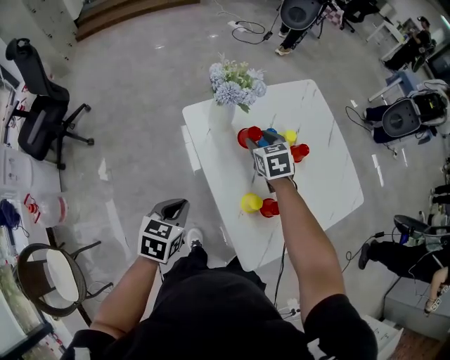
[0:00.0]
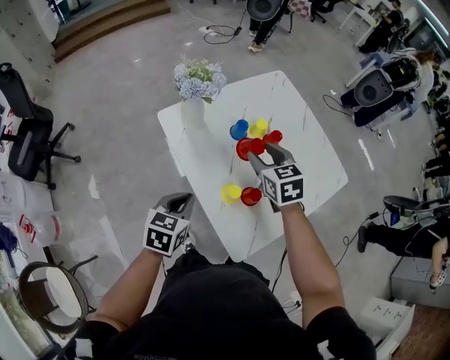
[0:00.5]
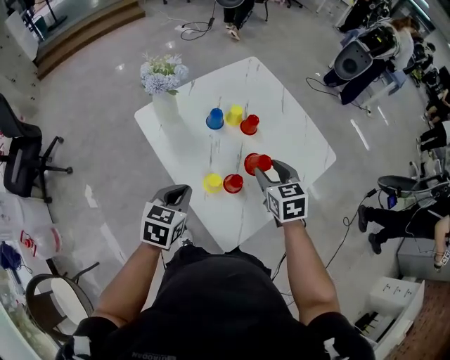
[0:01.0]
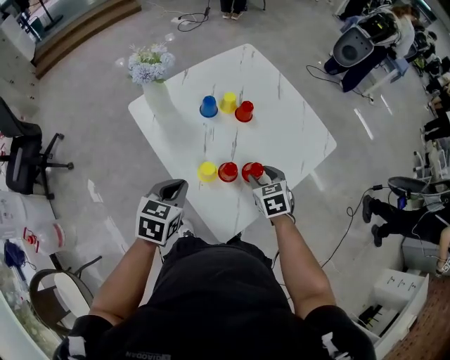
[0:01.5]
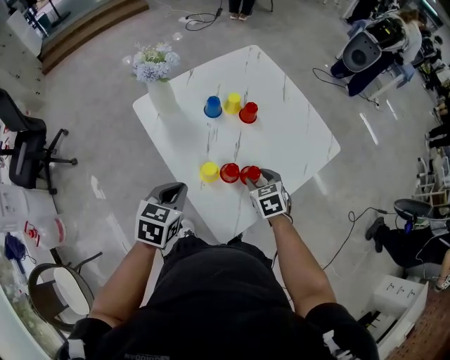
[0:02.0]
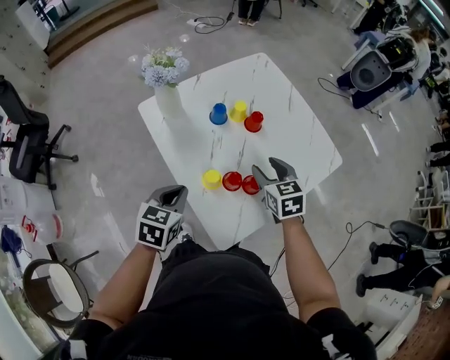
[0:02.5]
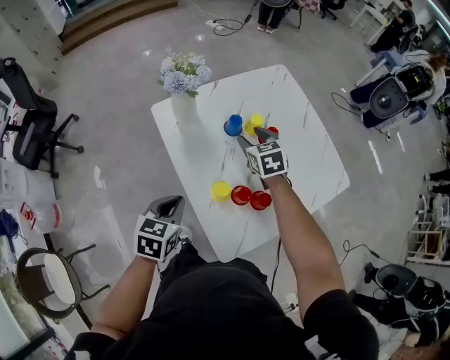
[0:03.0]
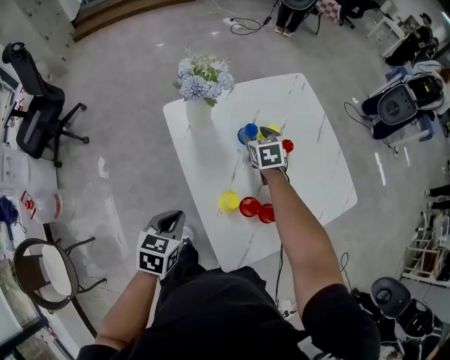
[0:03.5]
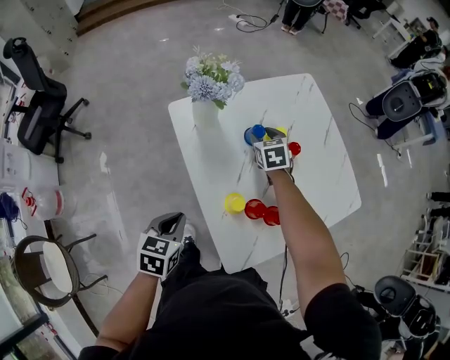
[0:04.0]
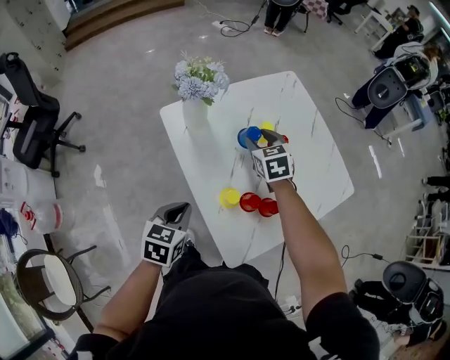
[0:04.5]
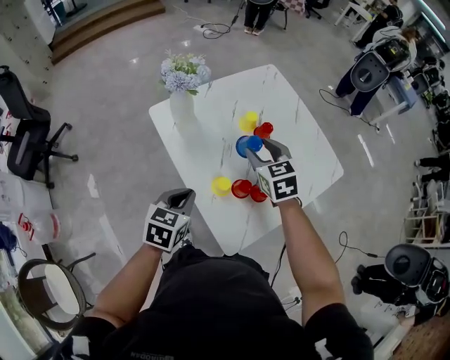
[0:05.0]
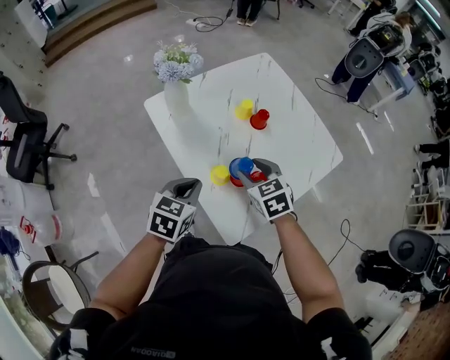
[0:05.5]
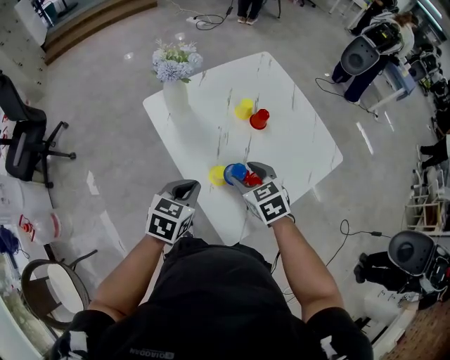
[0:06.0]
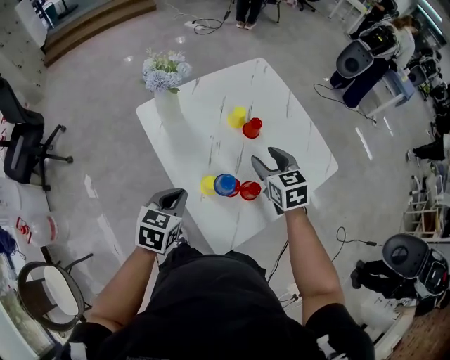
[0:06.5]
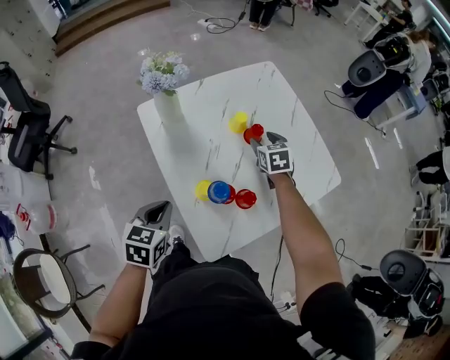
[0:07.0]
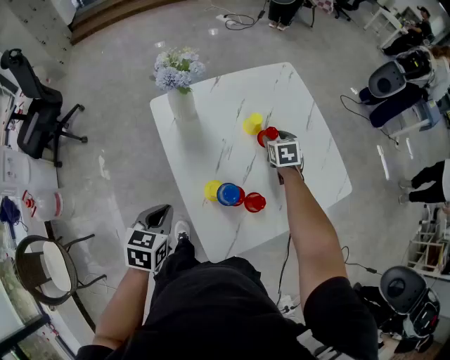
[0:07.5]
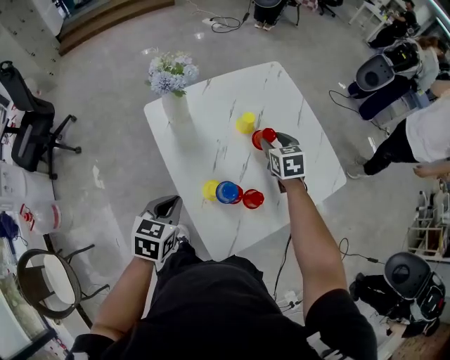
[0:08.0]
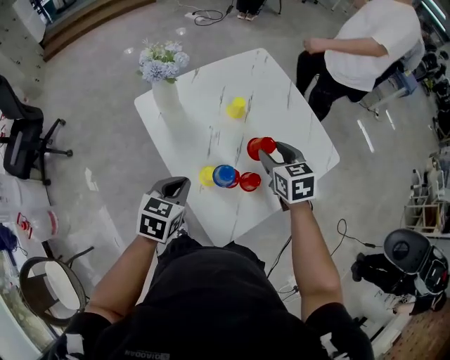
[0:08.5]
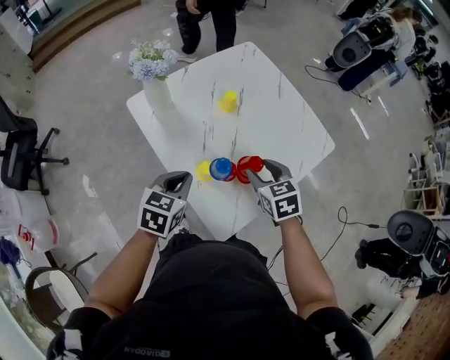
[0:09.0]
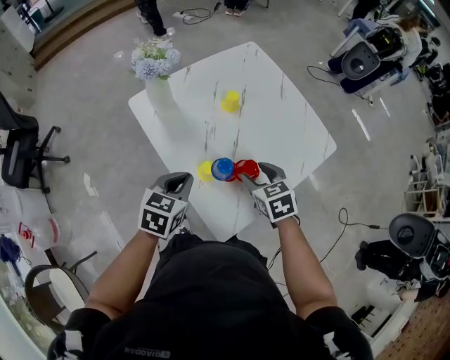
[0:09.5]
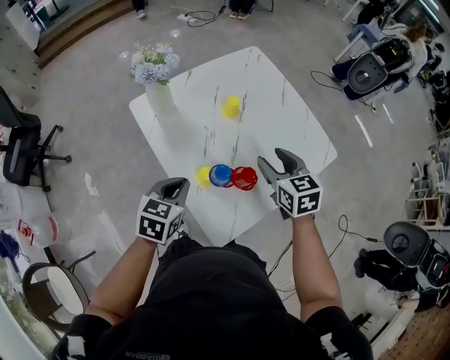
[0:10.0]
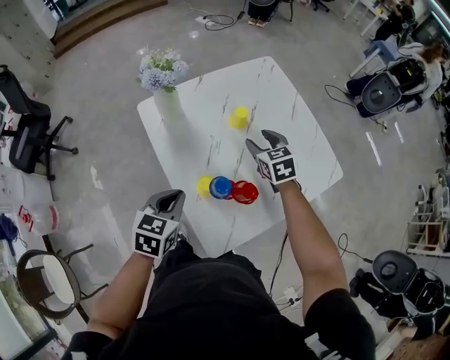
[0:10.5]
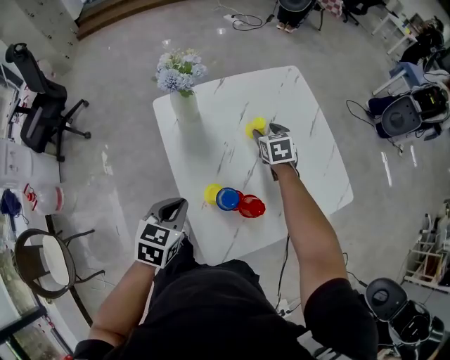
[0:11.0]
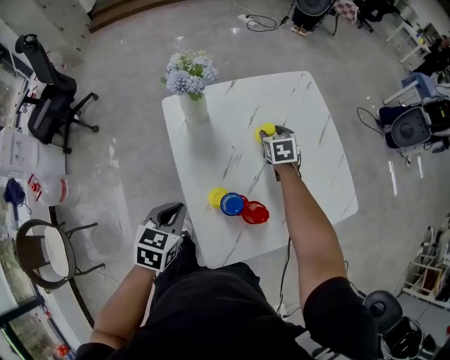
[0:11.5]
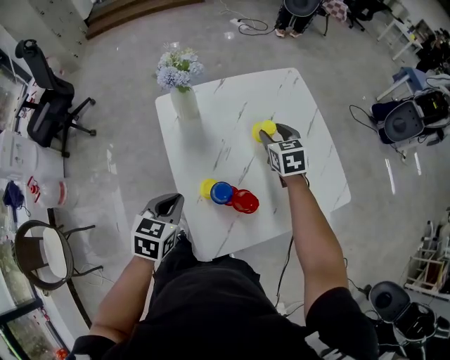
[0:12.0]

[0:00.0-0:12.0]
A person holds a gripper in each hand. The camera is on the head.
0:00.0 to 0:02.0: The left gripper is displaced to the right by some 15 cm. The right gripper moves to the right and backward, some 30 cm.
0:02.0 to 0:04.0: The right gripper is displaced forward and to the left by some 30 cm. The left gripper heads to the left, covering about 10 cm.
0:04.0 to 0:06.0: The right gripper heads backward, covering some 25 cm, while the left gripper is displaced to the right by some 10 cm, and swivels roughly 20 degrees.
0:06.0 to 0:08.0: The right gripper heads forward and to the right, covering roughly 20 cm.
0:08.0 to 0:10.0: The right gripper shifts some 15 cm backward and upward.
0:10.0 to 0:12.0: The right gripper shifts some 20 cm forward.

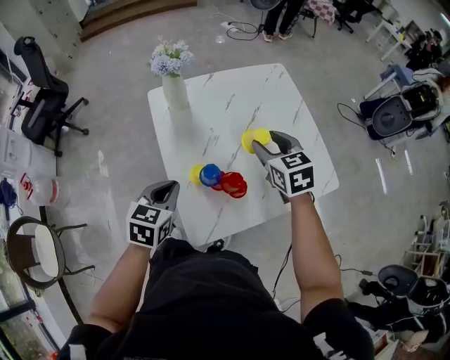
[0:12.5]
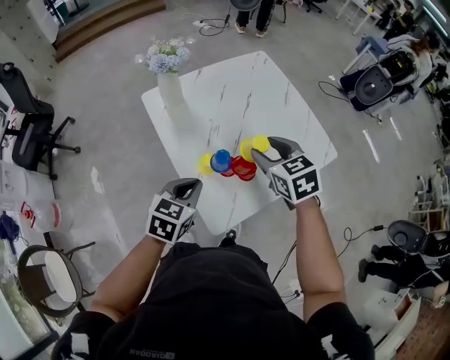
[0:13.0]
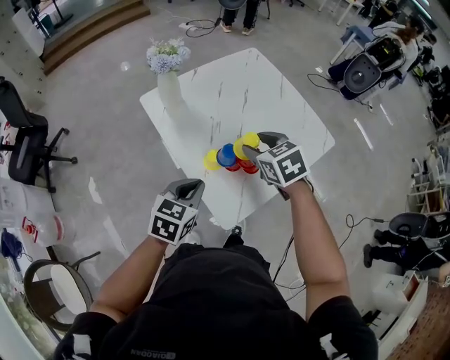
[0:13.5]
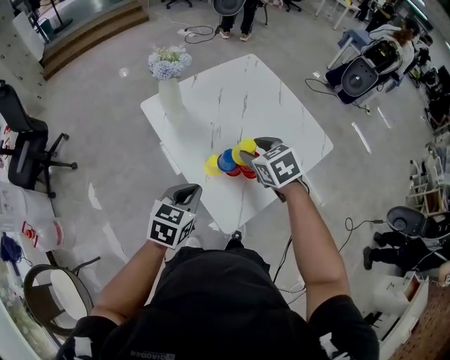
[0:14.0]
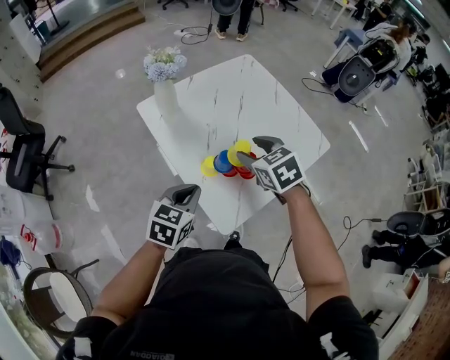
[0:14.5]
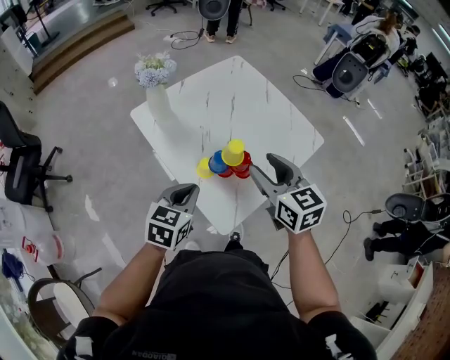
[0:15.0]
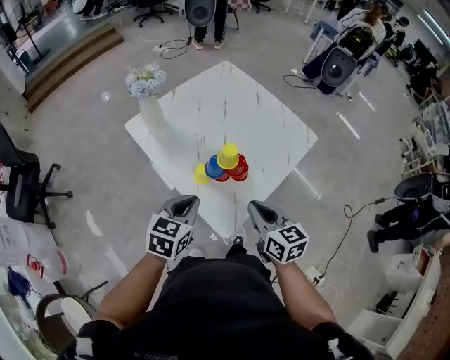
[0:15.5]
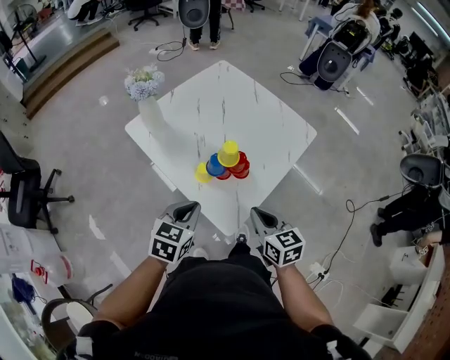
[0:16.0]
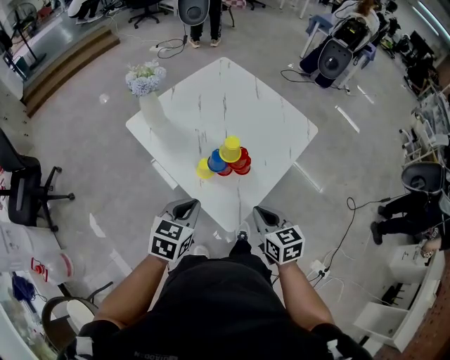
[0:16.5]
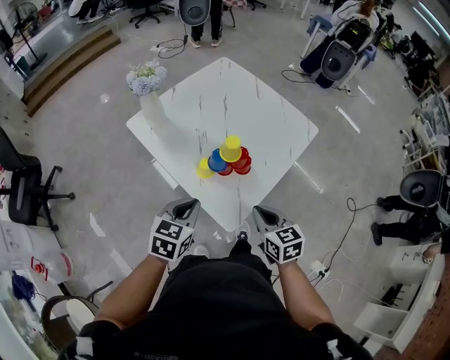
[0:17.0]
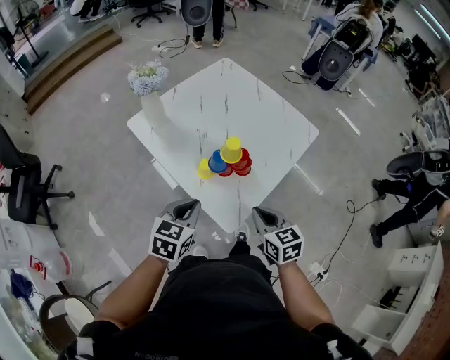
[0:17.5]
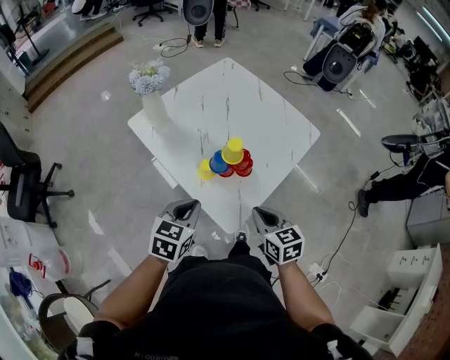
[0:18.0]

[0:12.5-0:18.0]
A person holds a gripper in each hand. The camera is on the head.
0:12.5 to 0:14.5: The left gripper swivels roughly 20 degrees. The right gripper goes approximately 10 cm backward and to the left.
0:14.5 to 0:16.0: The right gripper travels backward by about 15 cm, swivels some 30 degrees, and closes its fingers.
0:16.0 to 0:18.0: The grippers stay close to where they were, moving slightly.

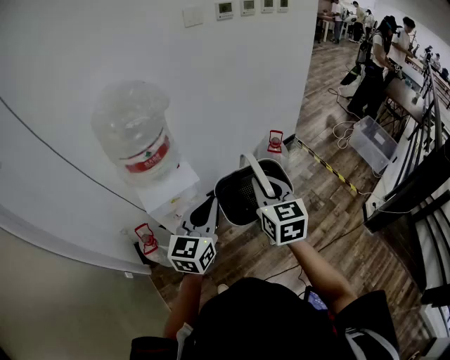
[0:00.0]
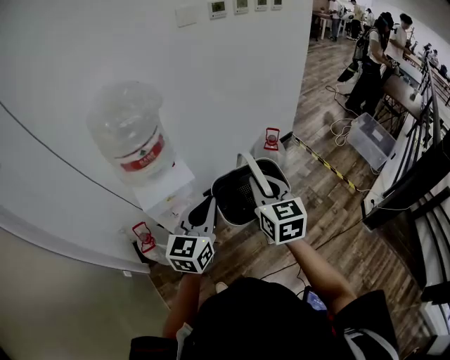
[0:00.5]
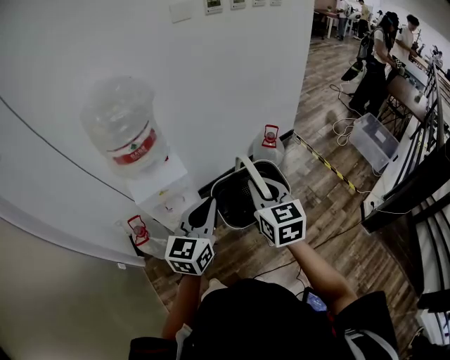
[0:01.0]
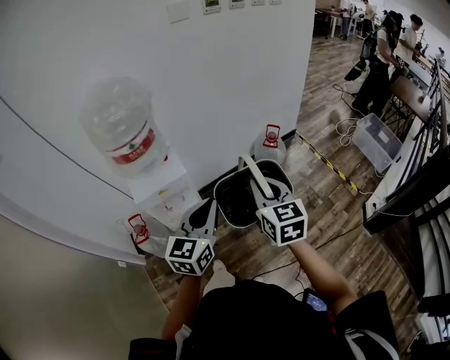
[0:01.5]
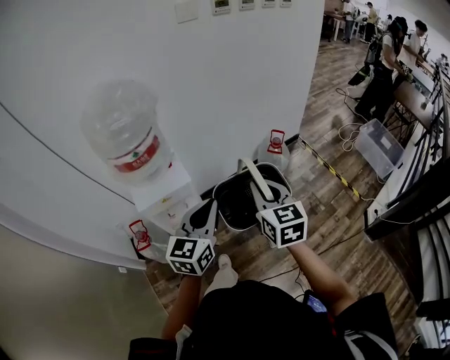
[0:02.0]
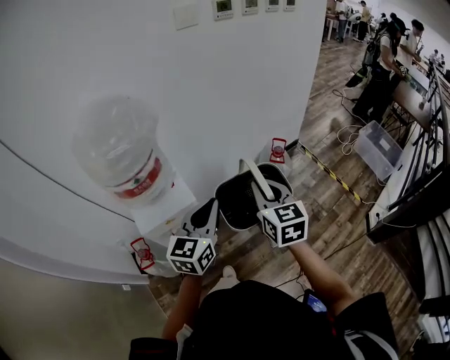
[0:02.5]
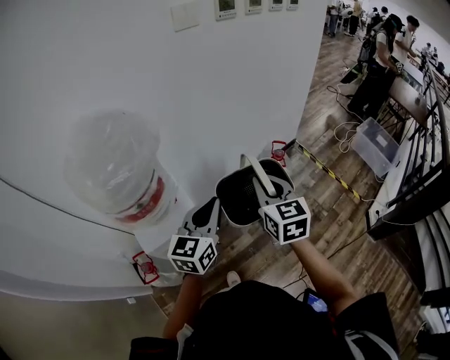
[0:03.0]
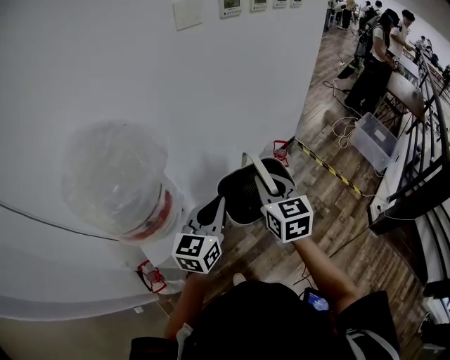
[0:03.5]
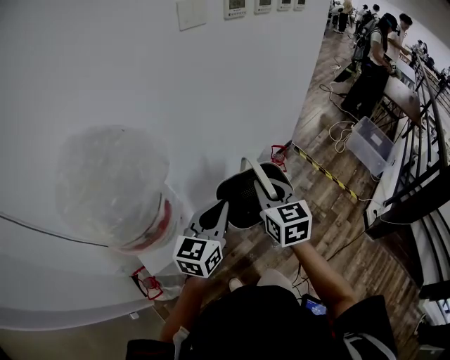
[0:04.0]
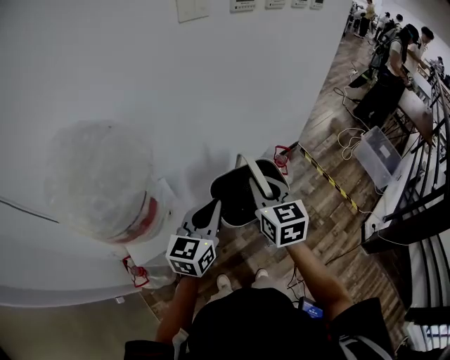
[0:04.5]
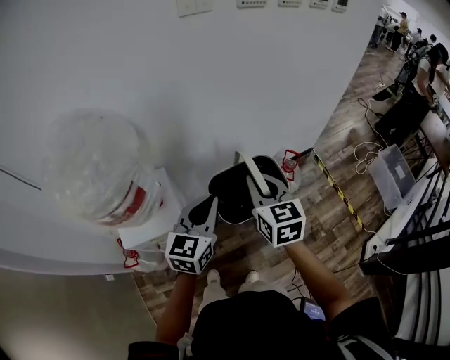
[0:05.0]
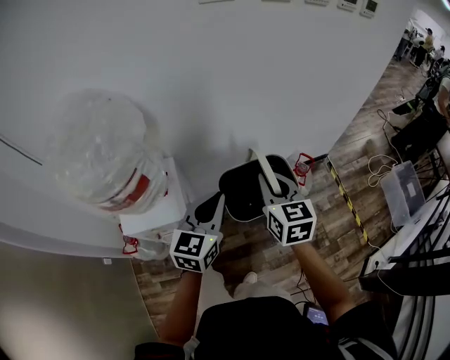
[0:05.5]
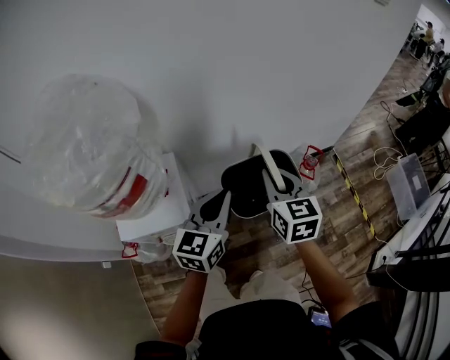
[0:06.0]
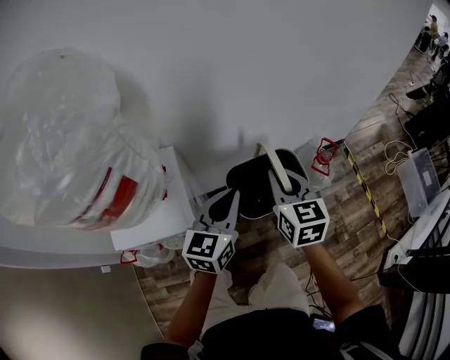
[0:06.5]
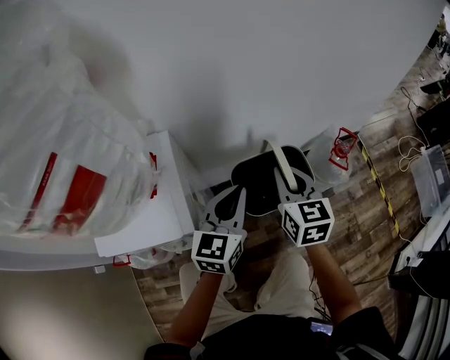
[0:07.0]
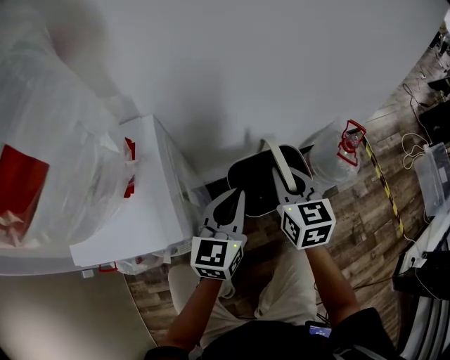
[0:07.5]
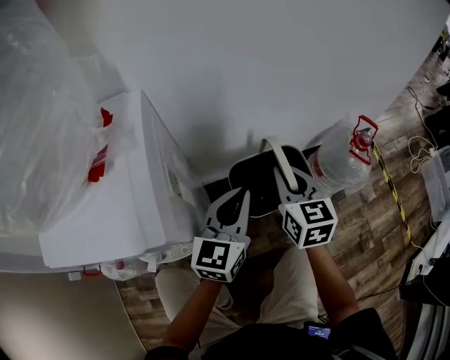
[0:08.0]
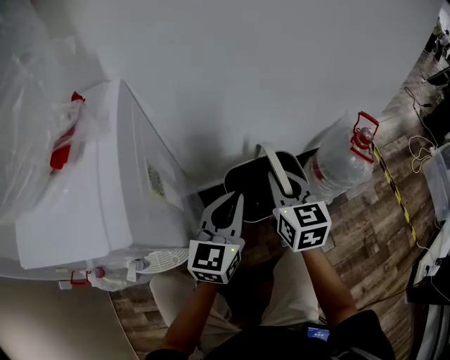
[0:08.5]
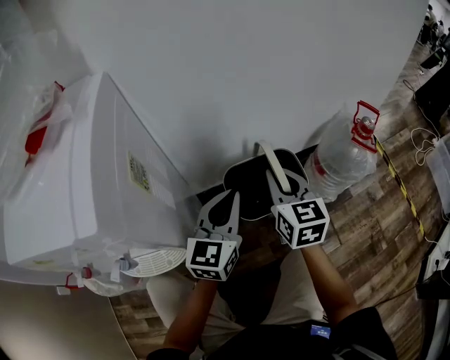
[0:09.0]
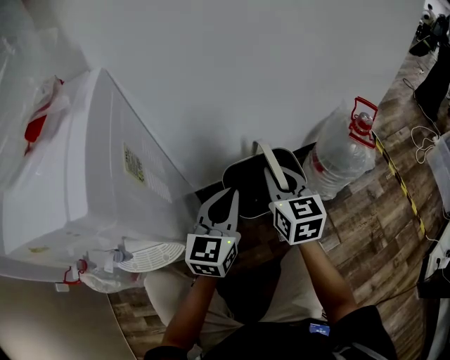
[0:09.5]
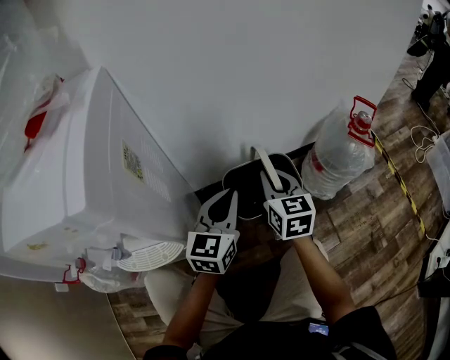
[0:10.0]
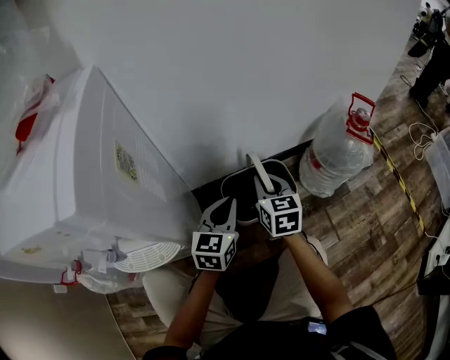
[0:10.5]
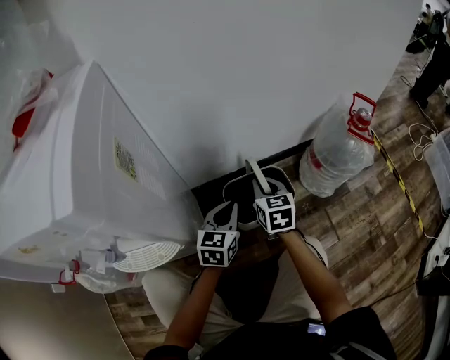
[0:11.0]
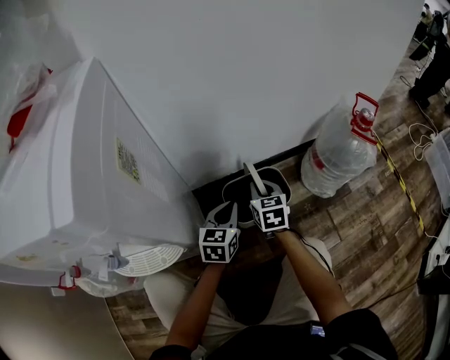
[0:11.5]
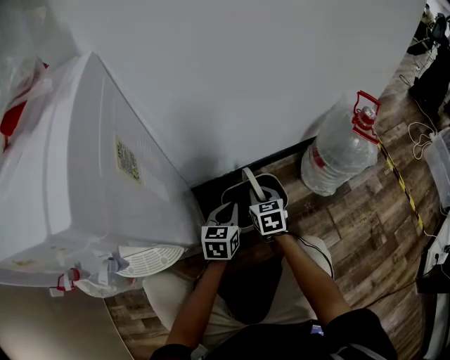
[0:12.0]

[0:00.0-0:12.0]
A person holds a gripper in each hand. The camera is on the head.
0:00.0 to 0:02.0: The right gripper ends up some 5 cm from where it was. The left gripper changes place by some 5 cm.
0:02.0 to 0:04.0: The left gripper goes some 20 cm forward. The right gripper moves forward and to the left, some 25 cm.
0:04.0 to 0:06.0: The right gripper moves forward and downward, about 15 cm. The left gripper heads downward and forward, covering roughly 10 cm, and turns by about 20 degrees.
0:06.0 to 0:08.0: The two grippers go roughly 35 cm downward.
0:08.0 to 0:10.0: Both grippers move downward, roughly 15 cm.
0:10.0 to 0:12.0: The two grippers go approximately 20 cm downward. The left gripper changes its angle by approximately 20 degrees.
